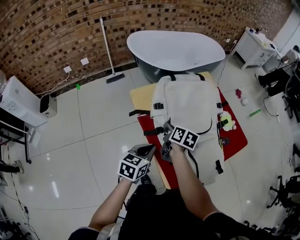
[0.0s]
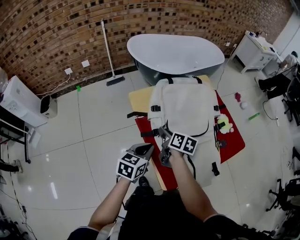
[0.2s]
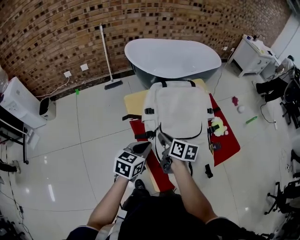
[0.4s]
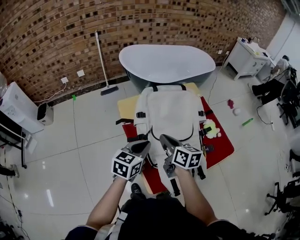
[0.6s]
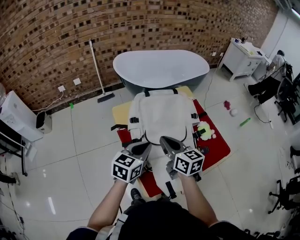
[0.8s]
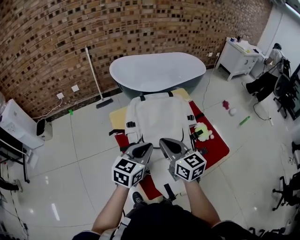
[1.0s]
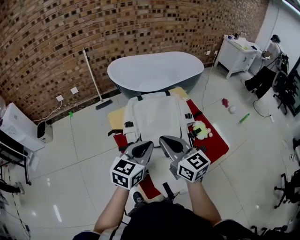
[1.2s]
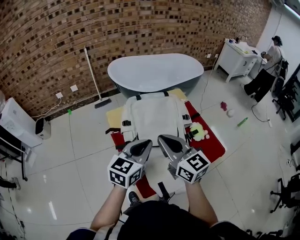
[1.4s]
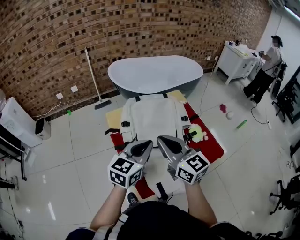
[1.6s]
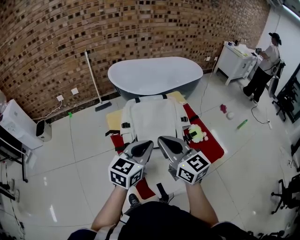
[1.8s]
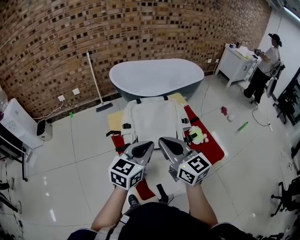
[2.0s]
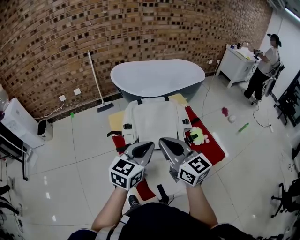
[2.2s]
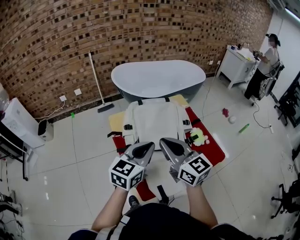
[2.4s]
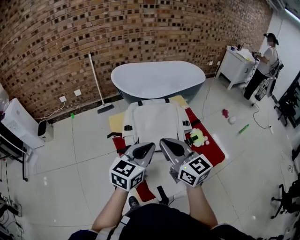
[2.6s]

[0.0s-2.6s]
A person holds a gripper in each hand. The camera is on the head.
0.0s to 1.2s: The grippers both shift upward and to the right by about 20 cm. The left gripper swivels roughly 20 degrees. The right gripper tips its fingers upward by roughly 30 degrees, and opens, then closes again.
1.2s to 2.6s: The grippers move only a little.

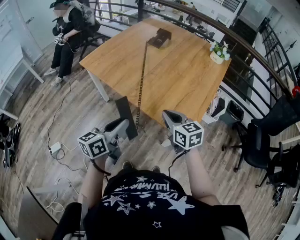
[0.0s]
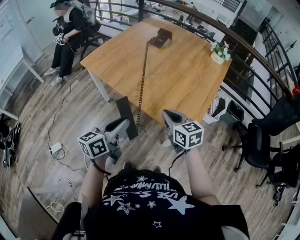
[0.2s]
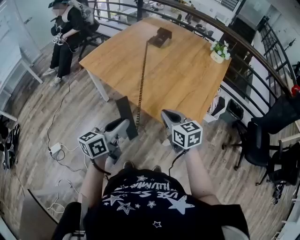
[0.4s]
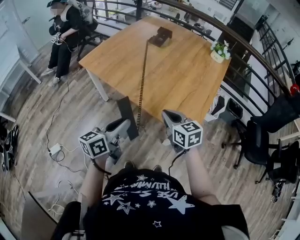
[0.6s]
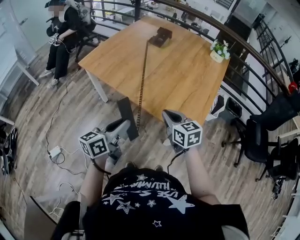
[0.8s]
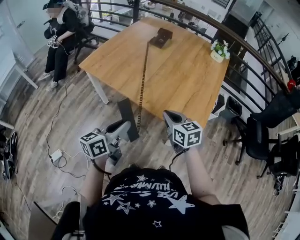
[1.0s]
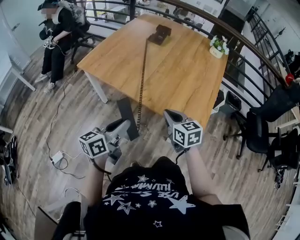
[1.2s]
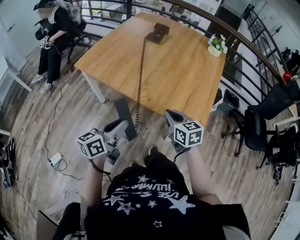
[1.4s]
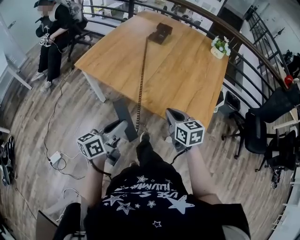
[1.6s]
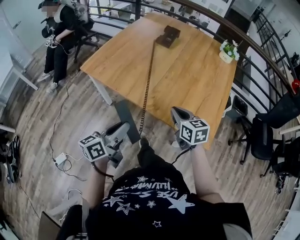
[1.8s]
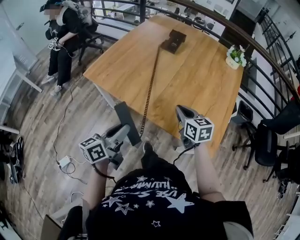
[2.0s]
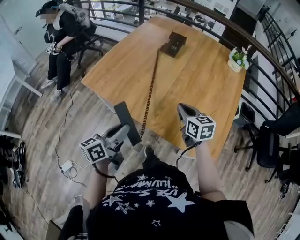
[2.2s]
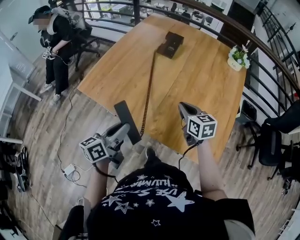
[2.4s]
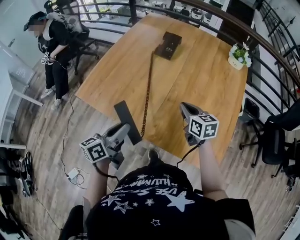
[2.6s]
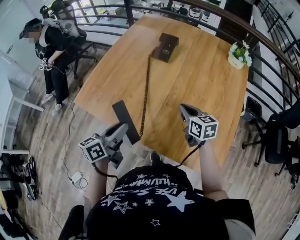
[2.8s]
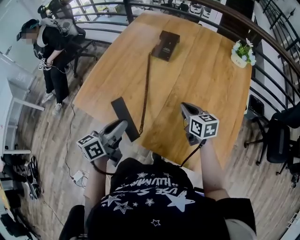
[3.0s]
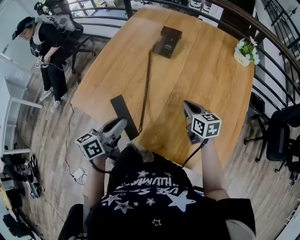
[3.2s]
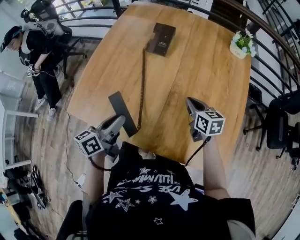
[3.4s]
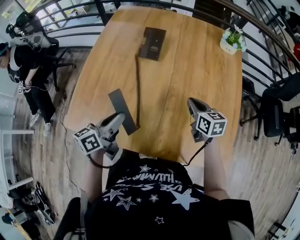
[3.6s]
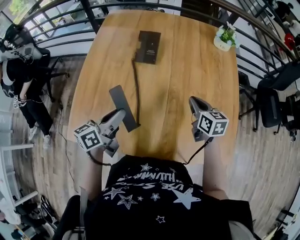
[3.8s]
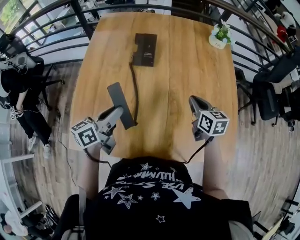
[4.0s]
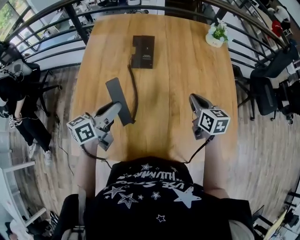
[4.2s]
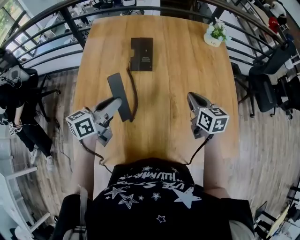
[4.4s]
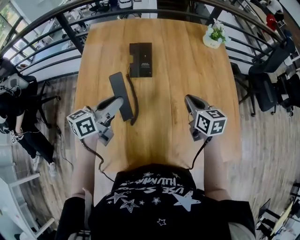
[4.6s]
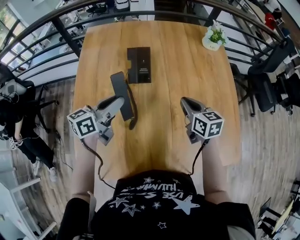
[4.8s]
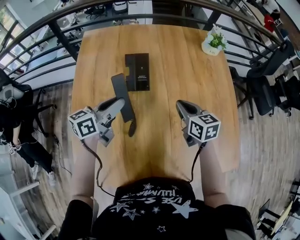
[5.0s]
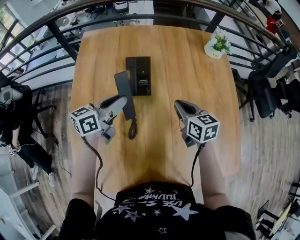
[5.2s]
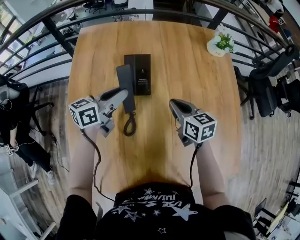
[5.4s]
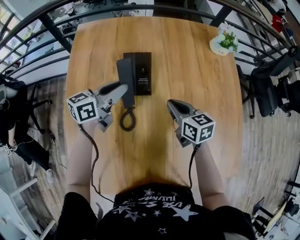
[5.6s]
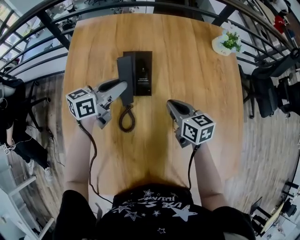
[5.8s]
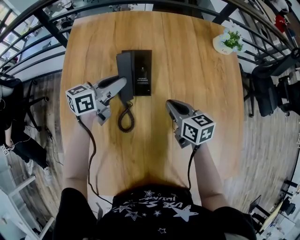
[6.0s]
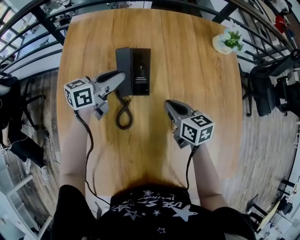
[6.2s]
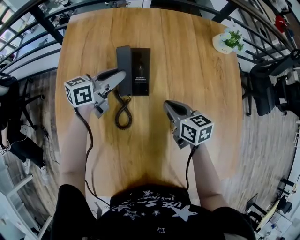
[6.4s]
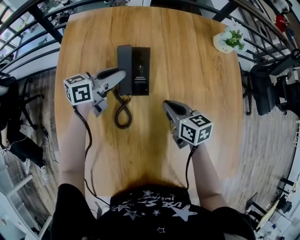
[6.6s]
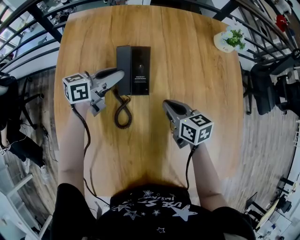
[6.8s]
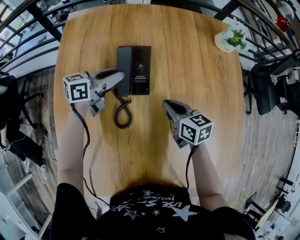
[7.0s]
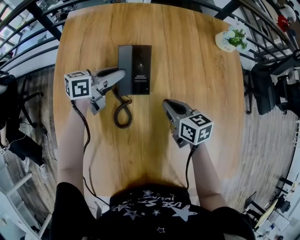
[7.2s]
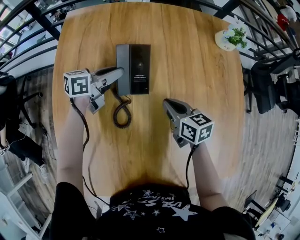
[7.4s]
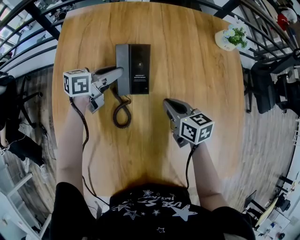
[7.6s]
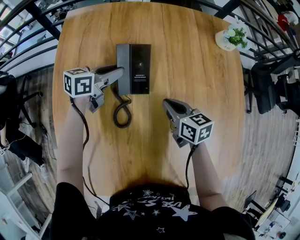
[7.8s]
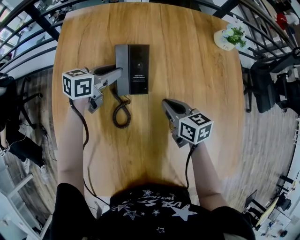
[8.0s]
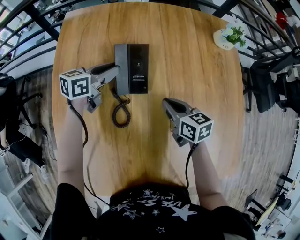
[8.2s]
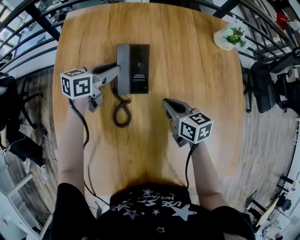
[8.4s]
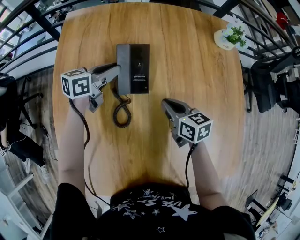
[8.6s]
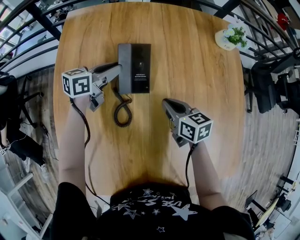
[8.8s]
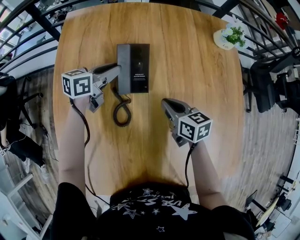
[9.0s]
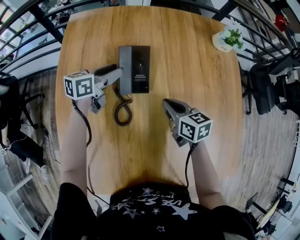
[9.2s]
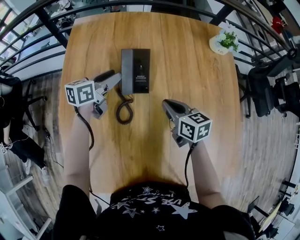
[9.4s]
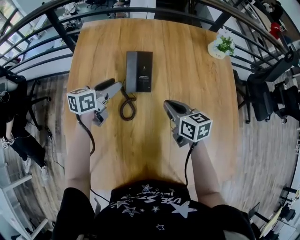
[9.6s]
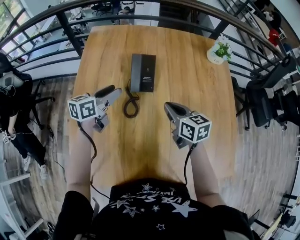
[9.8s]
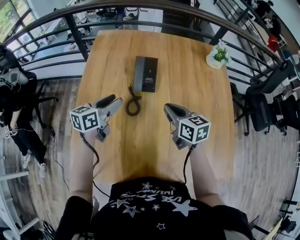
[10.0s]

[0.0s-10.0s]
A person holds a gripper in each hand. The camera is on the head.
0.0s to 1.4s: The two grippers go approximately 10 cm to the left.
1.4s to 2.8s: The grippers both shift forward by about 25 cm.
2.8s to 4.2s: The left gripper shifts by some 25 cm, and changes its angle by some 30 degrees. Meanwhile the right gripper ends up roughly 10 cm from where it was, and turns by approximately 30 degrees.
4.2s to 5.8s: The right gripper shifts approximately 20 cm to the left, forward and downward. The left gripper heads forward, covering approximately 25 cm.
5.8s to 7.2s: The left gripper moves downward, some 5 cm.
7.2s to 8.6s: There are only small adjustments of the grippers.
8.6s to 10.0s: The left gripper heads backward and upward, covering roughly 20 cm, and opens up; the right gripper travels upward and backward by about 15 cm.

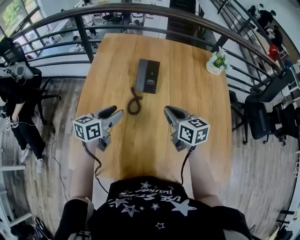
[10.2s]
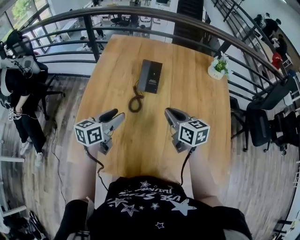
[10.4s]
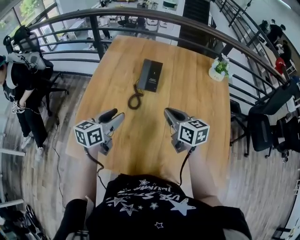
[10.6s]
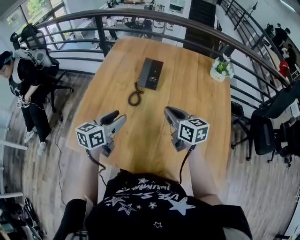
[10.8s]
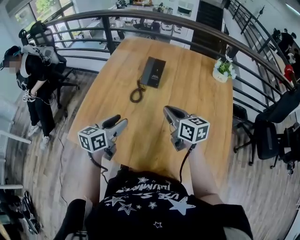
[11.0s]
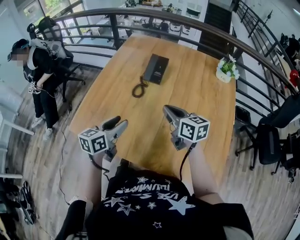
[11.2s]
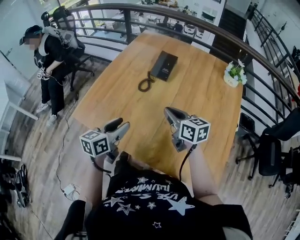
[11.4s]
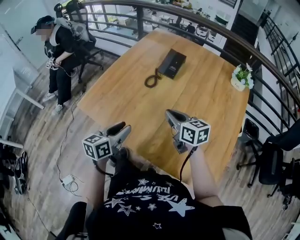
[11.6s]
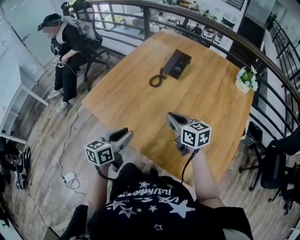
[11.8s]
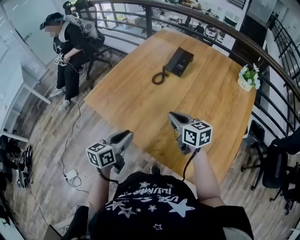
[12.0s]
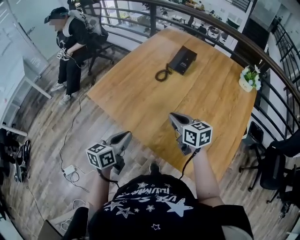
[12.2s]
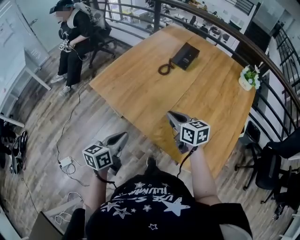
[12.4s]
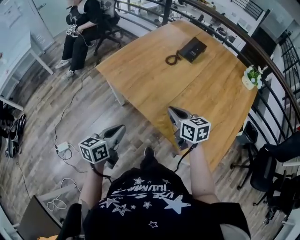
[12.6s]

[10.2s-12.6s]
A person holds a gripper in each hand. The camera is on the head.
10.2s to 11.4s: The left gripper changes place by approximately 25 cm, and changes its angle by roughly 30 degrees. The right gripper moves approximately 10 cm, and swivels about 30 degrees.
11.4s to 12.6s: The right gripper is displaced backward and to the left by approximately 20 cm; the left gripper goes approximately 25 cm backward, and closes up.

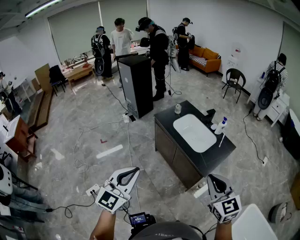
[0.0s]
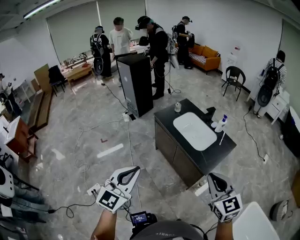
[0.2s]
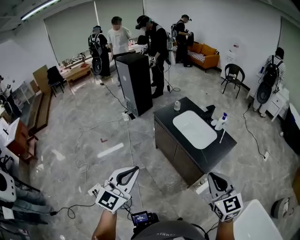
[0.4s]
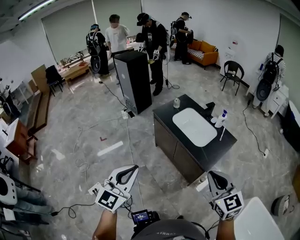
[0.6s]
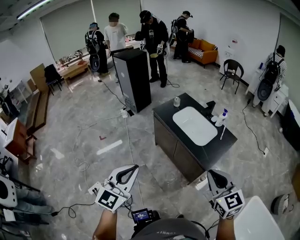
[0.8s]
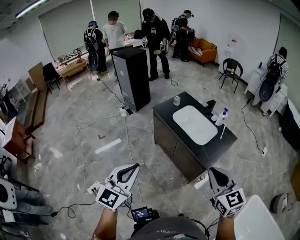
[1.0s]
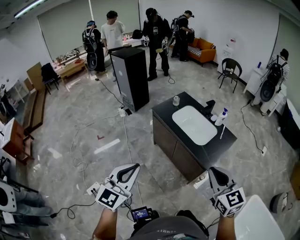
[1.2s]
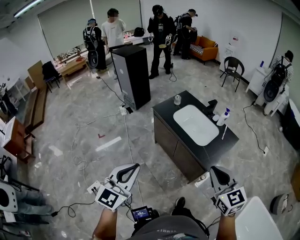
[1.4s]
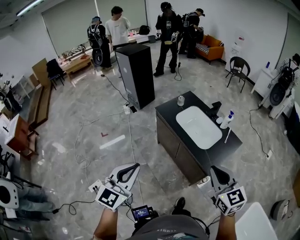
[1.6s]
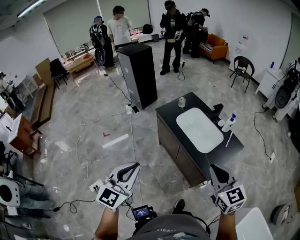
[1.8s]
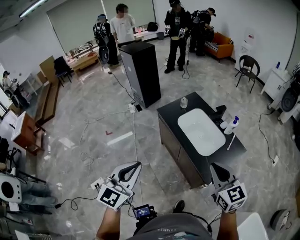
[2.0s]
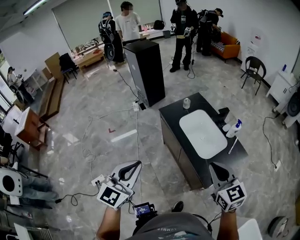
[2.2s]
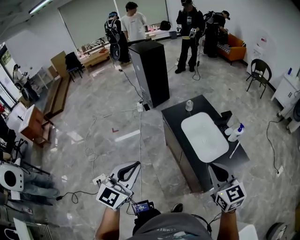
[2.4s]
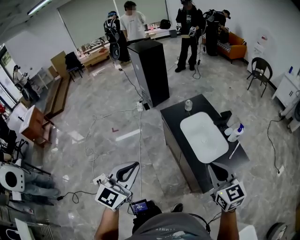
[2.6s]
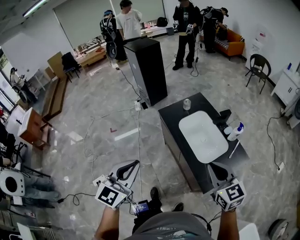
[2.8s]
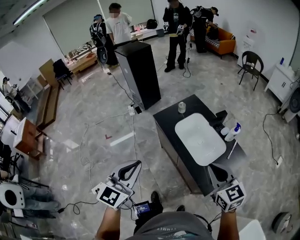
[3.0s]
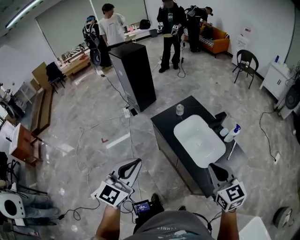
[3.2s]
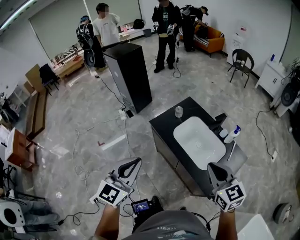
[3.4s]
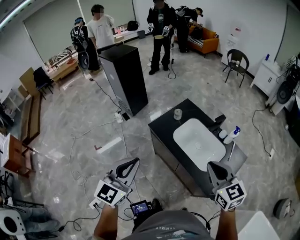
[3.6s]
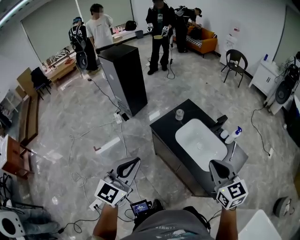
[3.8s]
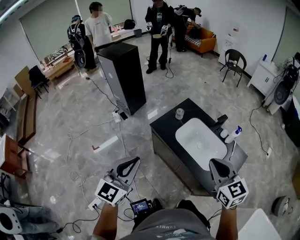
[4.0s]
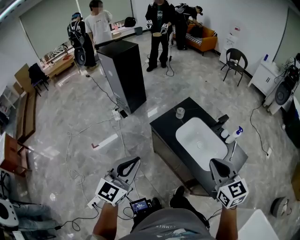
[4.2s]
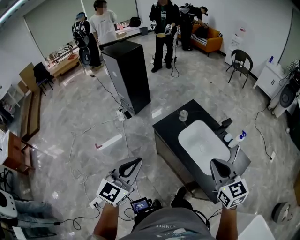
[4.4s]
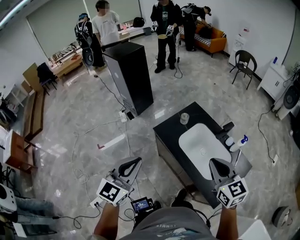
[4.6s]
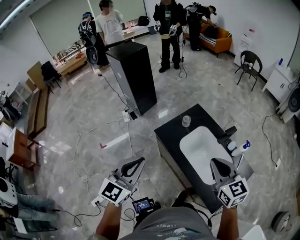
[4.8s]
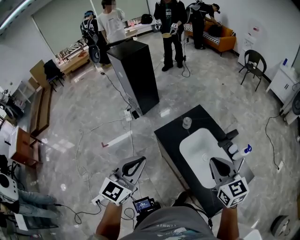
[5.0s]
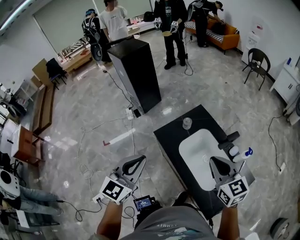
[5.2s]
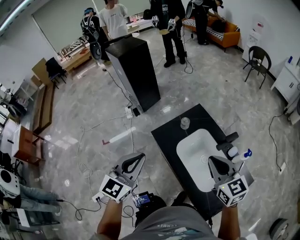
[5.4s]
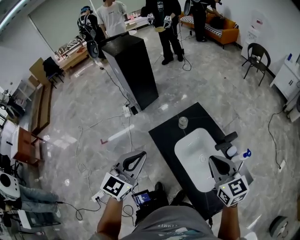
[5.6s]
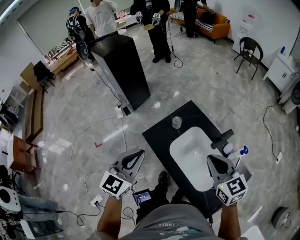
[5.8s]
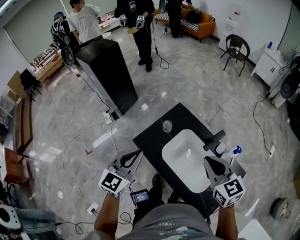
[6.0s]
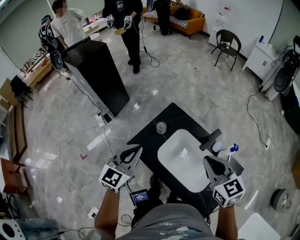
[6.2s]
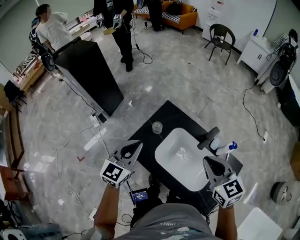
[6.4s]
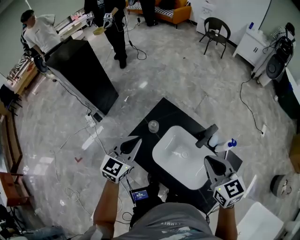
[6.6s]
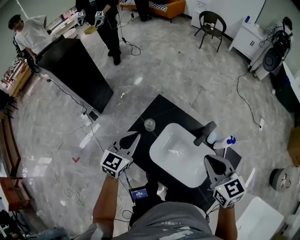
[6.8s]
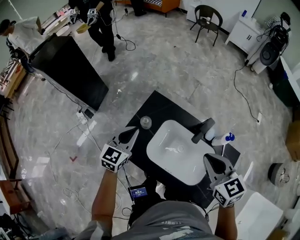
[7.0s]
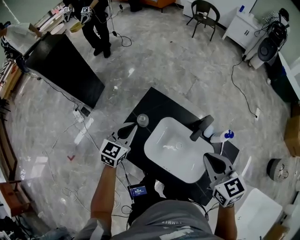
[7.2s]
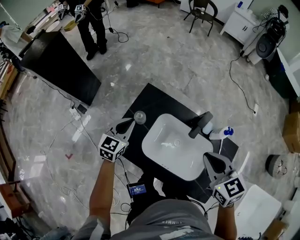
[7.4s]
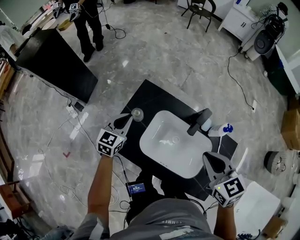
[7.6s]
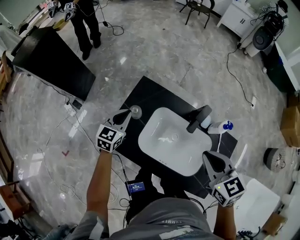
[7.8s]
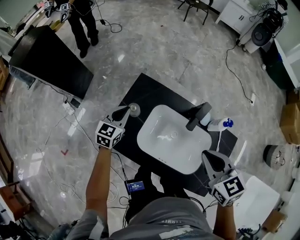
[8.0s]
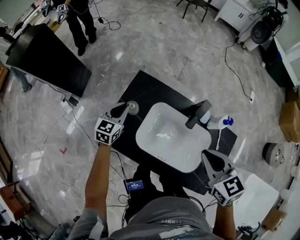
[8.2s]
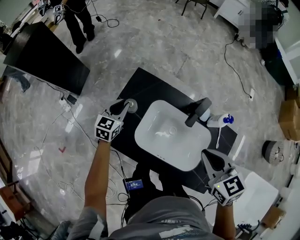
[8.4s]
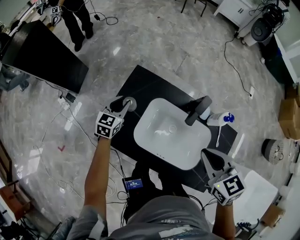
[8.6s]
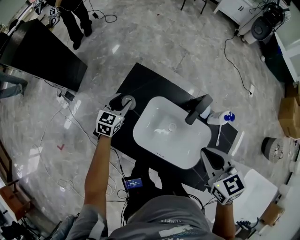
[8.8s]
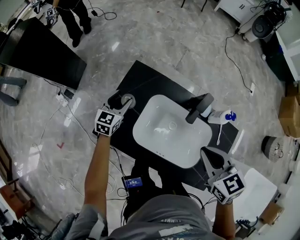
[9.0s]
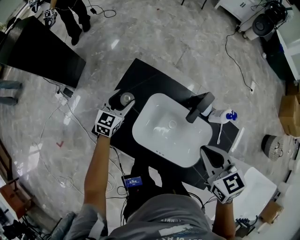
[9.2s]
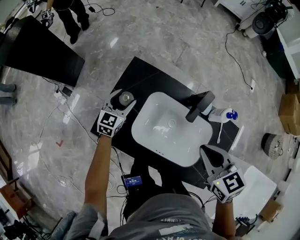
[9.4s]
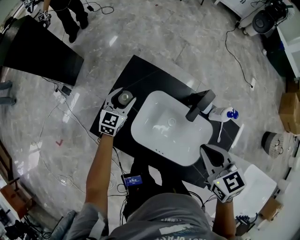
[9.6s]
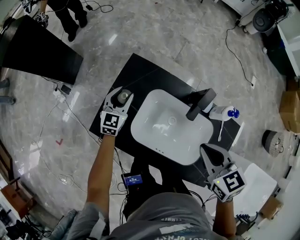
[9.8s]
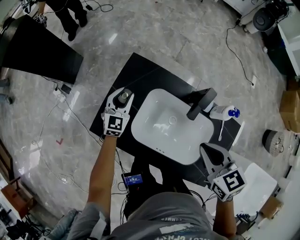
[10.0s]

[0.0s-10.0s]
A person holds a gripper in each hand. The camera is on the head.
0.0s to 1.4s: There are only small adjustments of the grippers.
1.4s to 2.8s: Both grippers travel together forward and to the right, roughly 15 cm.
2.8s to 4.2s: The grippers both shift forward and to the left by roughly 15 cm.
4.2s to 5.8s: Both grippers move forward and to the right, approximately 20 cm.
5.8s to 7.2s: The left gripper goes roughly 25 cm forward and downward, and swivels approximately 20 degrees. Meanwhile the right gripper shifts by some 5 cm, and changes its angle by about 20 degrees.
7.2s to 8.6s: The left gripper shifts approximately 15 cm downward and forward, and opens its fingers.
8.6s to 10.0s: The left gripper opens, then closes once more.
